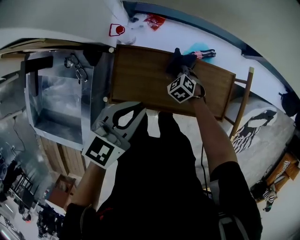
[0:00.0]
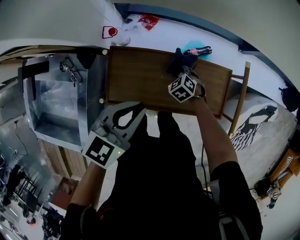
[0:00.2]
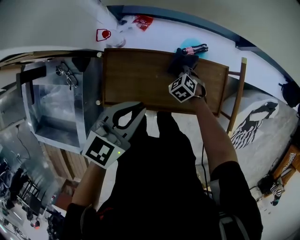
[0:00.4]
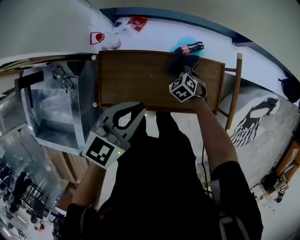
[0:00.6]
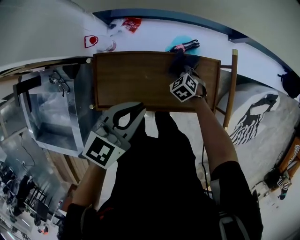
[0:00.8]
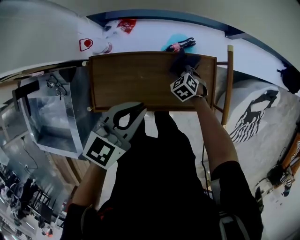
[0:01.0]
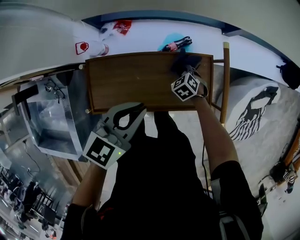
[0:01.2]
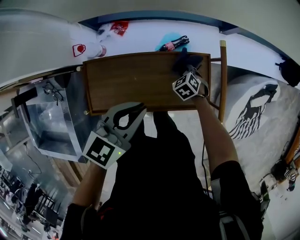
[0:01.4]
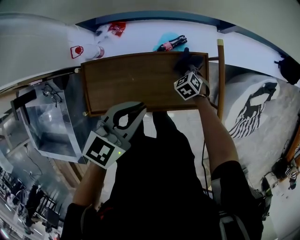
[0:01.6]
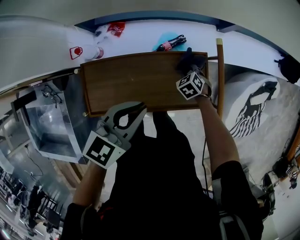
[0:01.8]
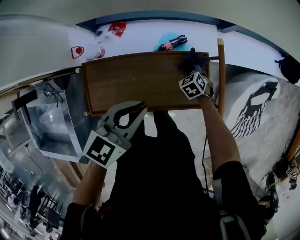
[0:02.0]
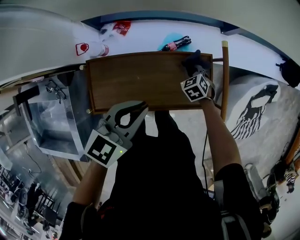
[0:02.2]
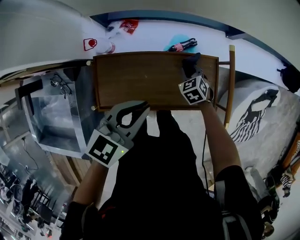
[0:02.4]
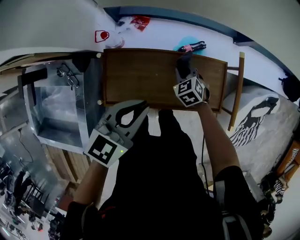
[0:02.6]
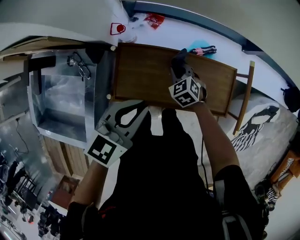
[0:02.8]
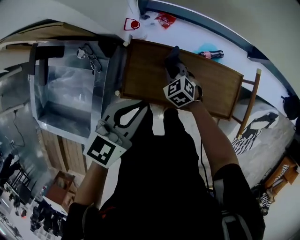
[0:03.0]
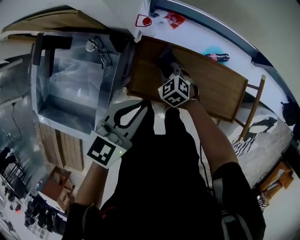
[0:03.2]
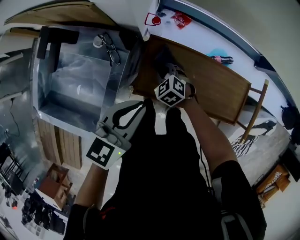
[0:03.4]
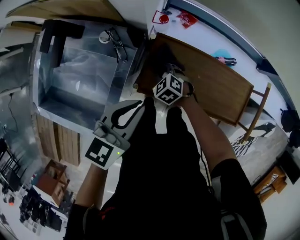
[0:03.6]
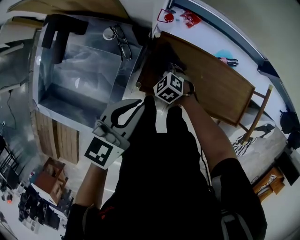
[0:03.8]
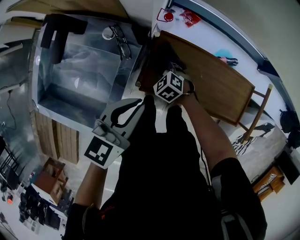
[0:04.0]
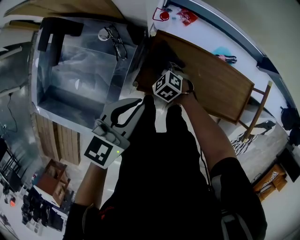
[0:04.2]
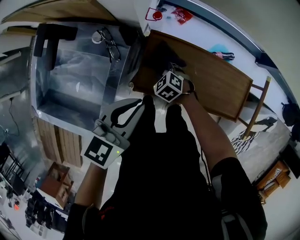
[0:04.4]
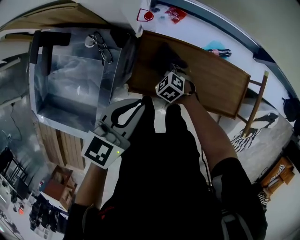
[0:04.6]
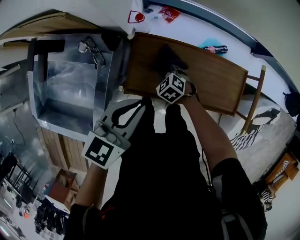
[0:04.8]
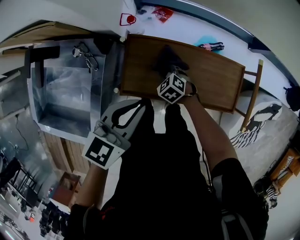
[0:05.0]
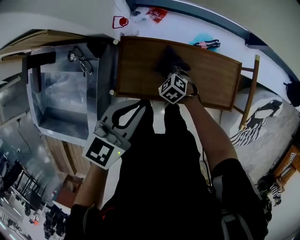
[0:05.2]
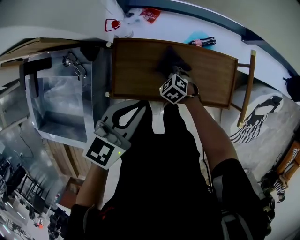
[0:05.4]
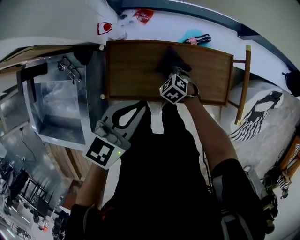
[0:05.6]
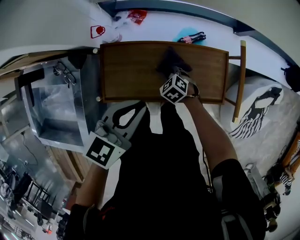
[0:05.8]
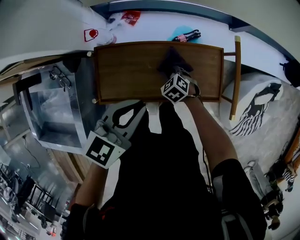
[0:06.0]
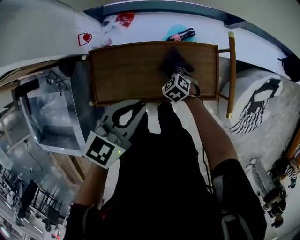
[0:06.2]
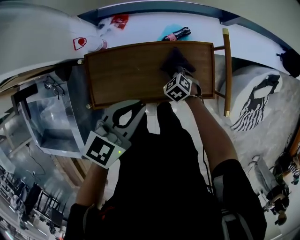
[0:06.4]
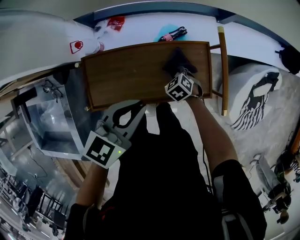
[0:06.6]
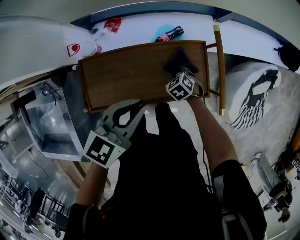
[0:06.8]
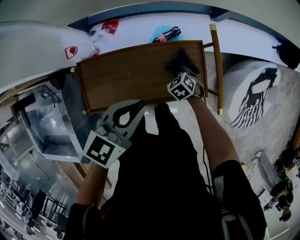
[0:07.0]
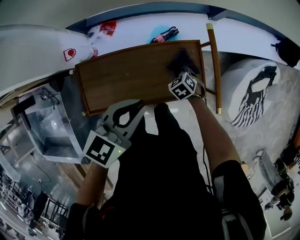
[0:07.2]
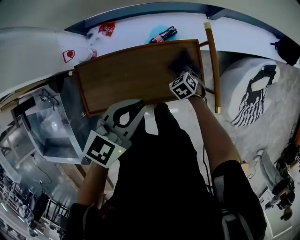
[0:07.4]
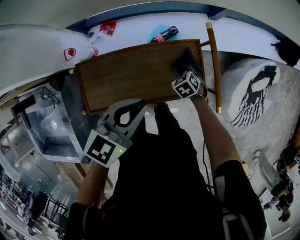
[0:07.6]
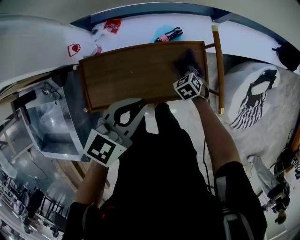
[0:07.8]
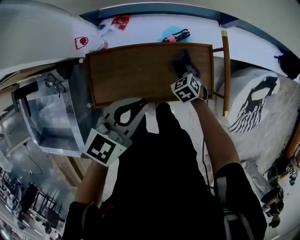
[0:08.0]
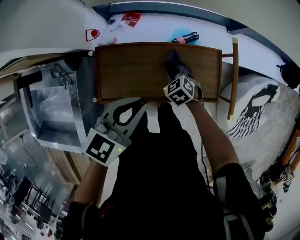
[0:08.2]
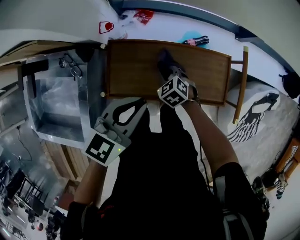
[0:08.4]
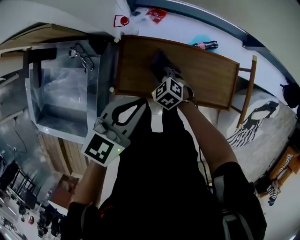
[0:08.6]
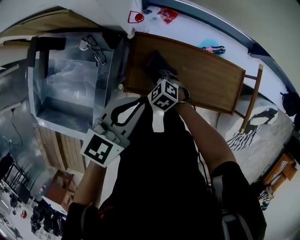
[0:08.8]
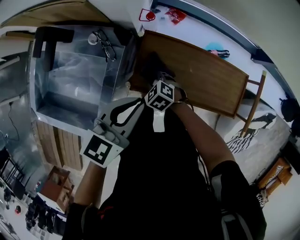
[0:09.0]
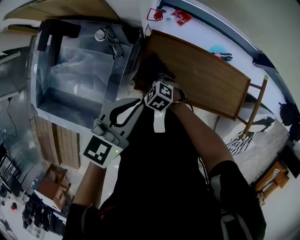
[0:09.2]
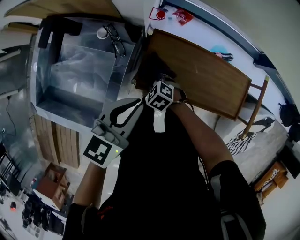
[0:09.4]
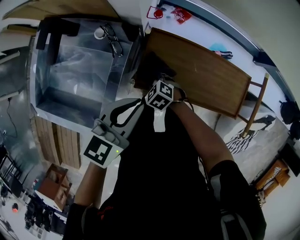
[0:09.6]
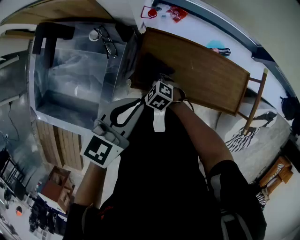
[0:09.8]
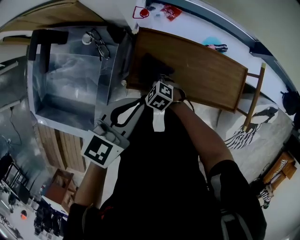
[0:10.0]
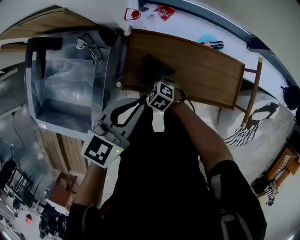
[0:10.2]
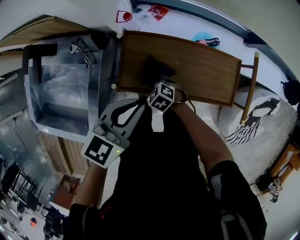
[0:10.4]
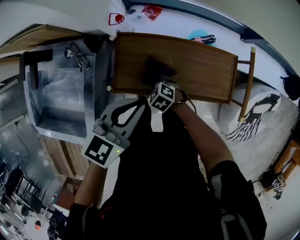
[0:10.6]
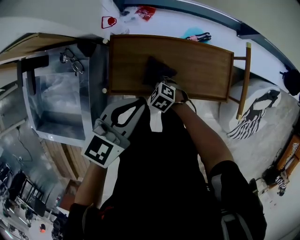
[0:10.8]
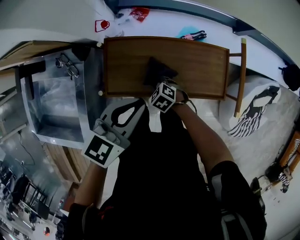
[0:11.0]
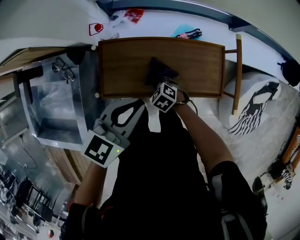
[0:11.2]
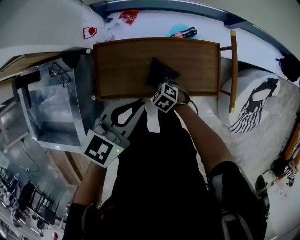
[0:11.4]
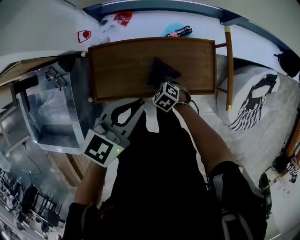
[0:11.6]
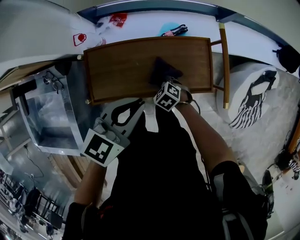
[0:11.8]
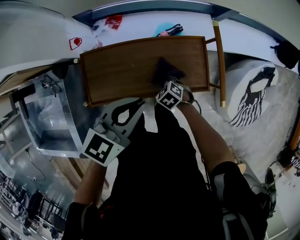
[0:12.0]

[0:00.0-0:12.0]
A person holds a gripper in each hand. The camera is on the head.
0:00.0 to 0:01.6: Both grippers travel together to the right, roughly 20 cm.
0:01.6 to 0:03.0: The right gripper changes place by approximately 30 cm, and turns by some 20 degrees. Meanwhile the left gripper moves some 20 cm.
0:03.0 to 0:04.4: The left gripper is displaced to the left by about 10 cm. The right gripper travels to the left and downward by roughly 15 cm.
0:04.4 to 0:06.0: The two grippers go some 25 cm to the right. The right gripper rotates about 20 degrees.
0:06.0 to 0:07.6: The right gripper is displaced to the right by roughly 15 cm; the left gripper travels to the right by some 10 cm.
0:07.6 to 0:09.0: The right gripper ends up some 50 cm from where it was, and swivels roughly 40 degrees. The left gripper shifts by about 30 cm, and turns by some 30 degrees.
0:09.0 to 0:10.4: Both grippers travel together to the right, approximately 5 cm.
0:10.4 to 0:12.0: The two grippers go approximately 20 cm to the right. The right gripper turns by some 20 degrees.

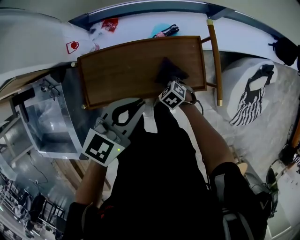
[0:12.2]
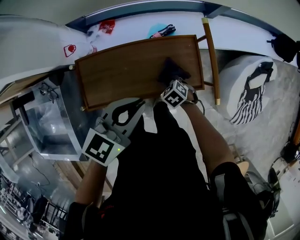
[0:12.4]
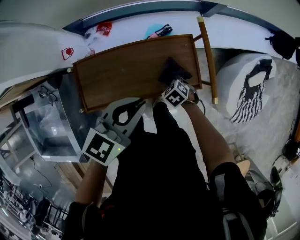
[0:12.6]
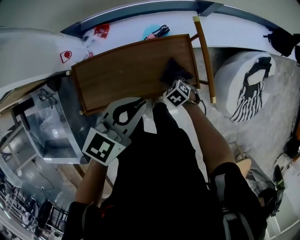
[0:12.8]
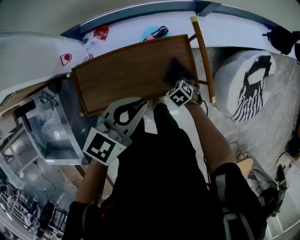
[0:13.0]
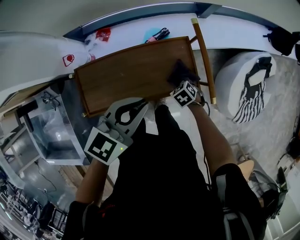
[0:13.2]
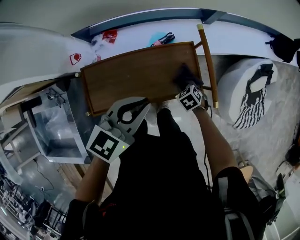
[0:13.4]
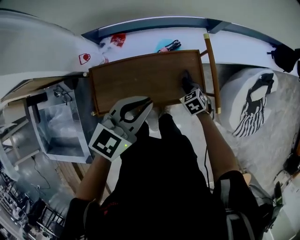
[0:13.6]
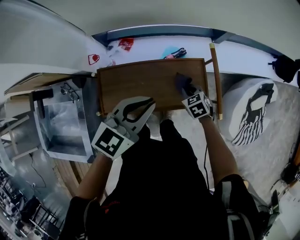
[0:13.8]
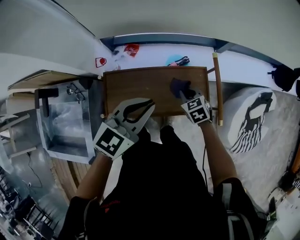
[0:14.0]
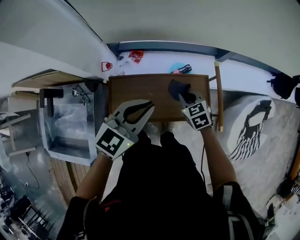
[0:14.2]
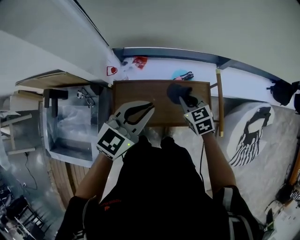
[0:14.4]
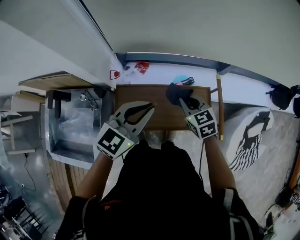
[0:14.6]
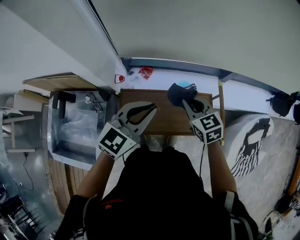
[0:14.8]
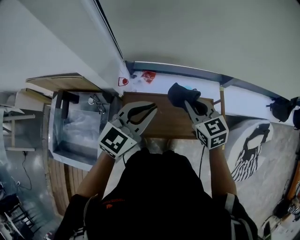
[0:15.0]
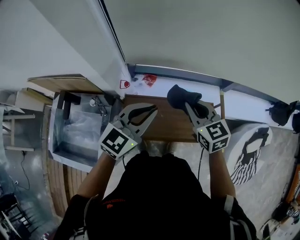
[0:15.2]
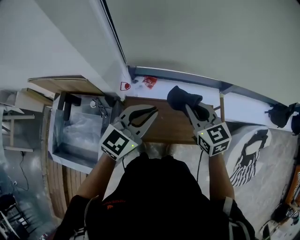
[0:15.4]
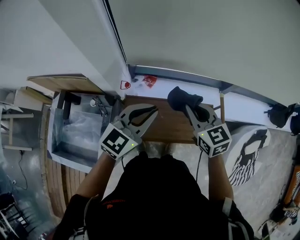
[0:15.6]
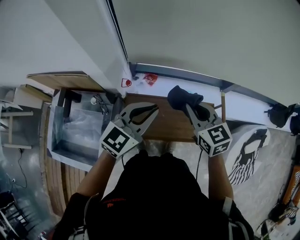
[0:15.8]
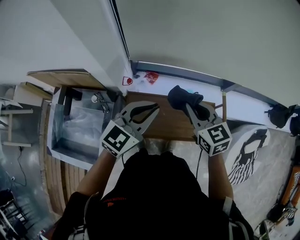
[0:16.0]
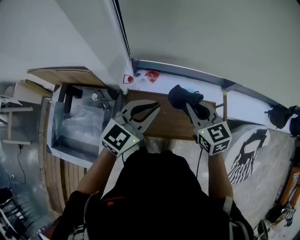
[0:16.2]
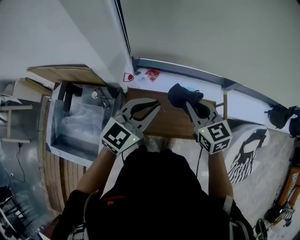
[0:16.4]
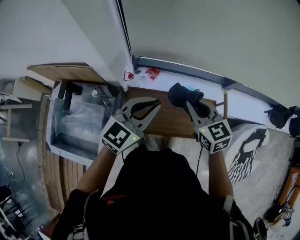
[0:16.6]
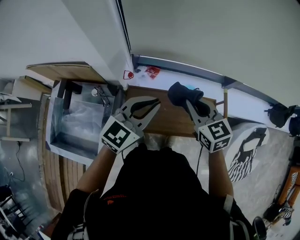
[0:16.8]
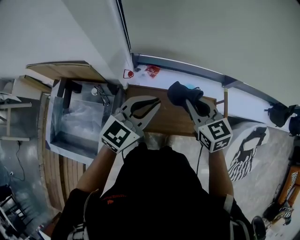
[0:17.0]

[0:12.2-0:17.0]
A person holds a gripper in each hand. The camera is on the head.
0:12.2 to 0:13.8: The left gripper heads upward, covering approximately 5 cm, while the right gripper shifts approximately 10 cm upward.
0:13.8 to 0:15.4: The right gripper moves upward and to the left, some 35 cm, and points its fingers about 40 degrees further upward; the left gripper is displaced to the left and upward by about 15 cm.
0:15.4 to 0:17.0: The grippers stay close to where they were, moving slightly.

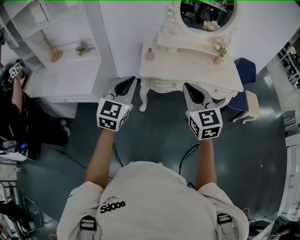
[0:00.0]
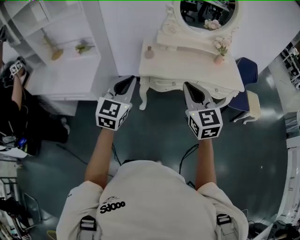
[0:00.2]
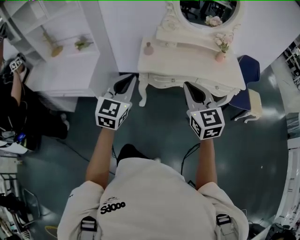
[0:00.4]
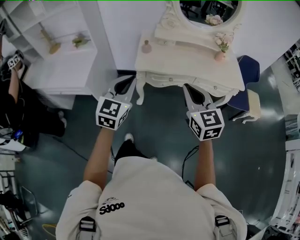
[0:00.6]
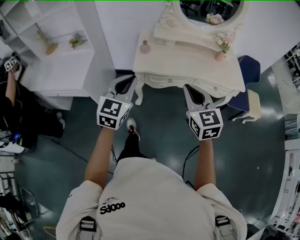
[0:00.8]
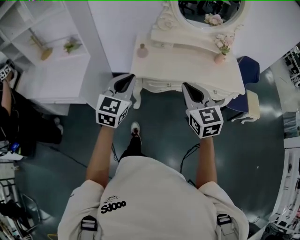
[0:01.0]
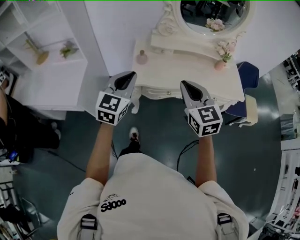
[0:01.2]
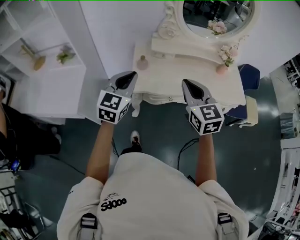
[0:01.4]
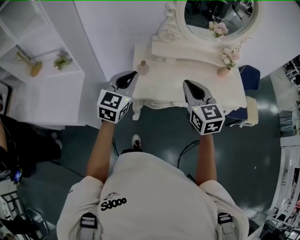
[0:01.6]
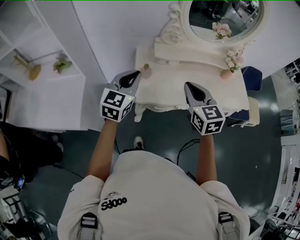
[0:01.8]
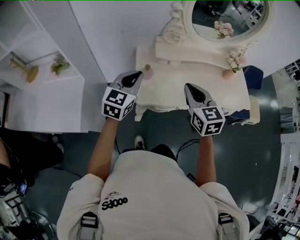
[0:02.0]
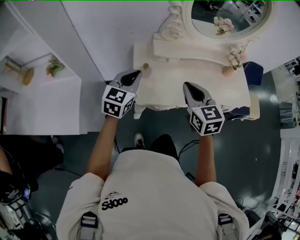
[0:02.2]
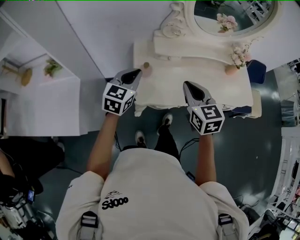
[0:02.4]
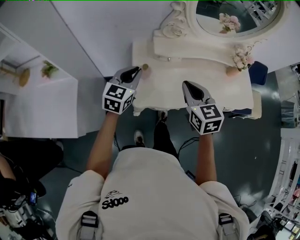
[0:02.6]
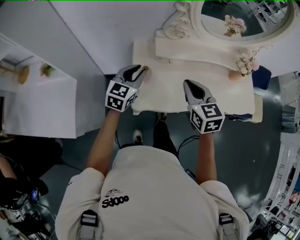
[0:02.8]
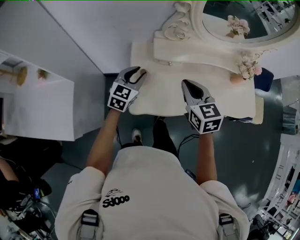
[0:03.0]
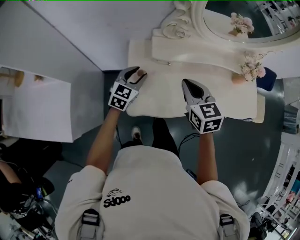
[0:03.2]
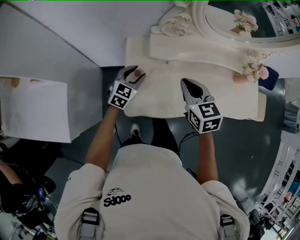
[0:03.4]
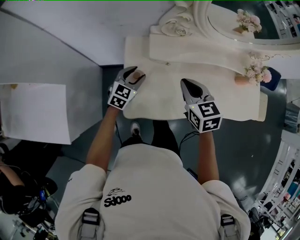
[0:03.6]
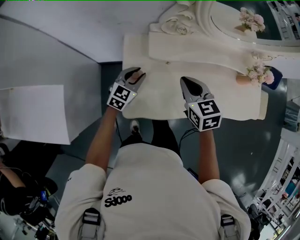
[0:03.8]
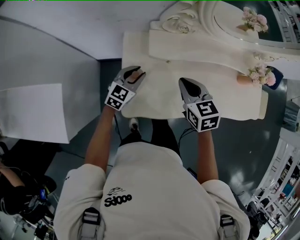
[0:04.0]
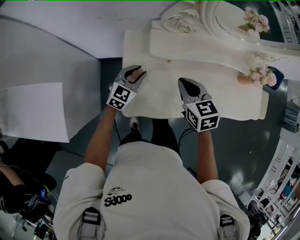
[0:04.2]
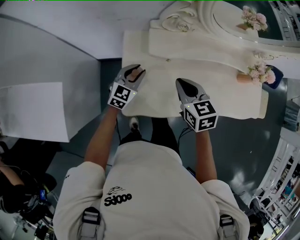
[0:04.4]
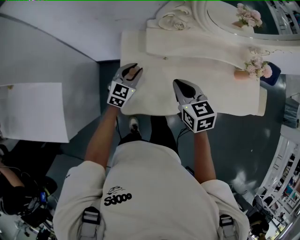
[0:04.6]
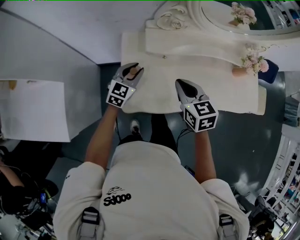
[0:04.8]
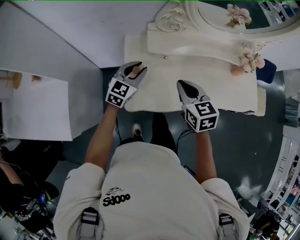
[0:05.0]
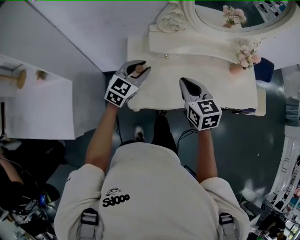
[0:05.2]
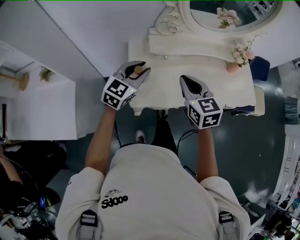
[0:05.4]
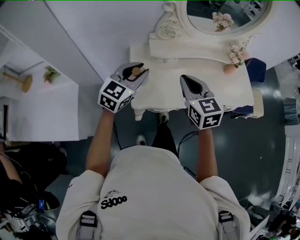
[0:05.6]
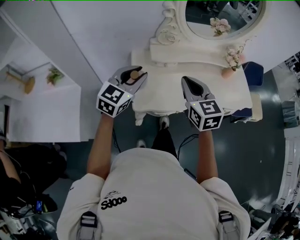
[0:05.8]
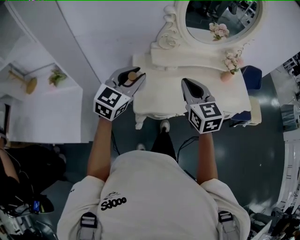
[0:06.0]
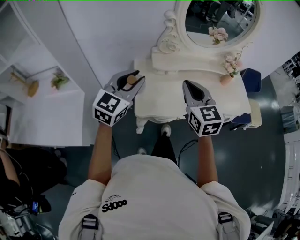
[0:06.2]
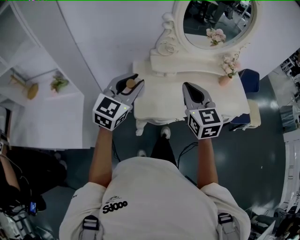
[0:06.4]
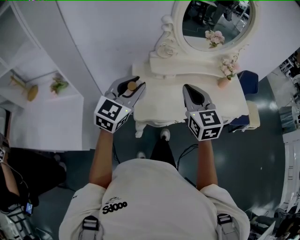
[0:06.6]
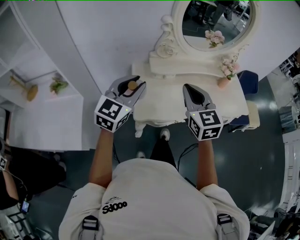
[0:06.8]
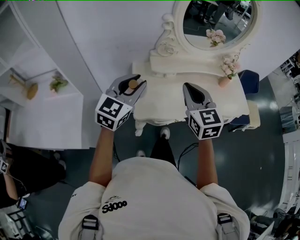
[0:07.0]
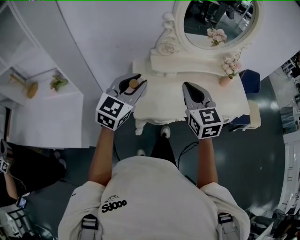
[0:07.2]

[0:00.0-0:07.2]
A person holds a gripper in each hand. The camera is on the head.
0:00.0 to 0:01.4: Both grippers travel together forward, approximately 25 cm.
0:01.4 to 0:02.8: The grippers both shift forward and downward by roughly 25 cm. The left gripper opens its fingers.
0:02.8 to 0:04.4: The two grippers go approximately 15 cm downward and forward. The left gripper opens, then closes once more.
0:04.4 to 0:05.8: Both grippers move upward and backward, some 25 cm. The right gripper changes its angle by about 20 degrees.
0:05.8 to 0:07.2: The left gripper ends up some 5 cm from where it was.
